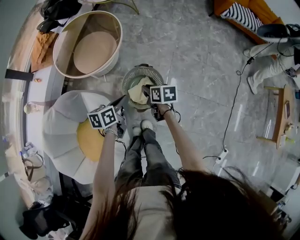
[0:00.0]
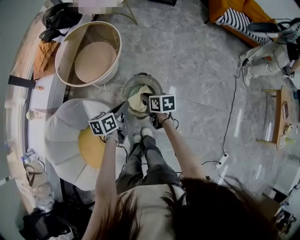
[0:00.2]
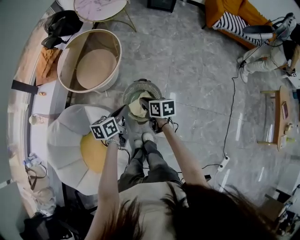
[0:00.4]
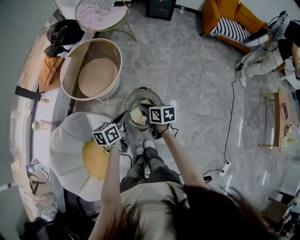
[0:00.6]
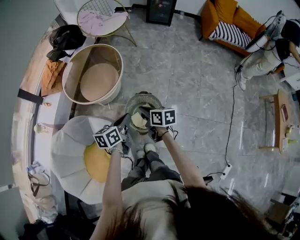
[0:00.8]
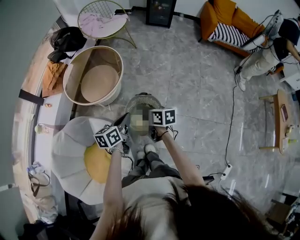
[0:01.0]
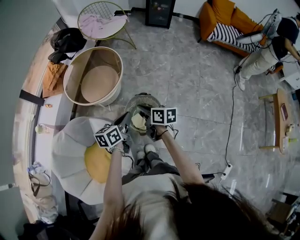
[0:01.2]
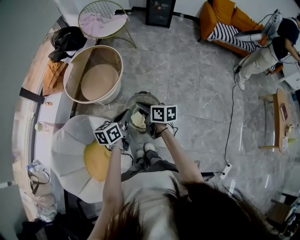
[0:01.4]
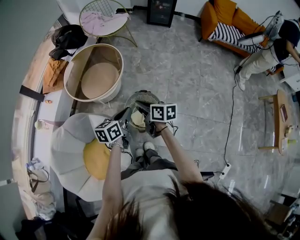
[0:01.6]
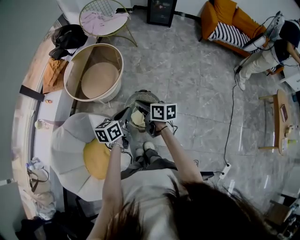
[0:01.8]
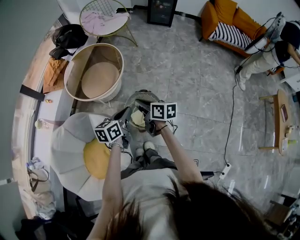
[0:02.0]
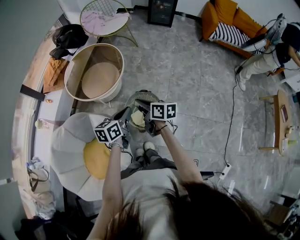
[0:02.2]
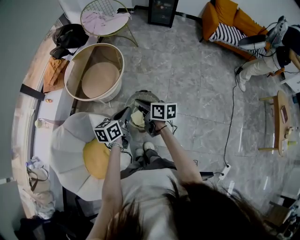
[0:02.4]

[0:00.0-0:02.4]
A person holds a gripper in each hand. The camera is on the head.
0:00.0 to 0:01.2: Both grippers travel together upward, roughly 15 cm. The right gripper changes its angle by roughly 20 degrees.
0:01.2 to 0:02.4: There are only small adjustments of the grippers.

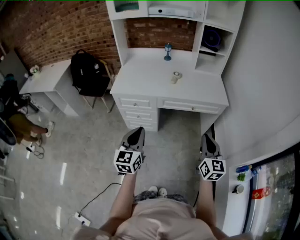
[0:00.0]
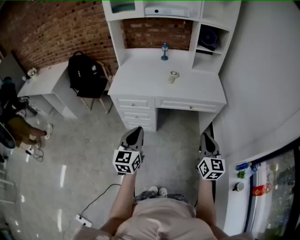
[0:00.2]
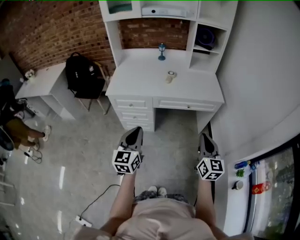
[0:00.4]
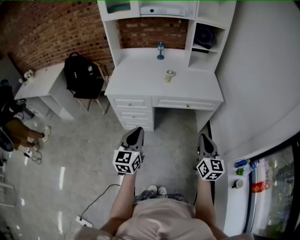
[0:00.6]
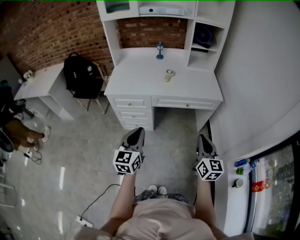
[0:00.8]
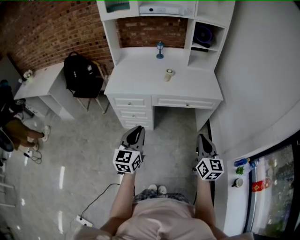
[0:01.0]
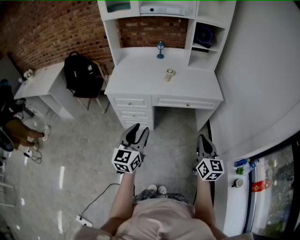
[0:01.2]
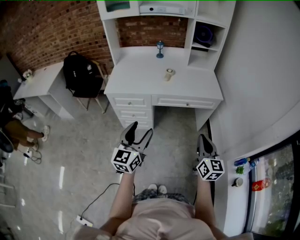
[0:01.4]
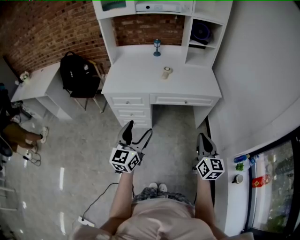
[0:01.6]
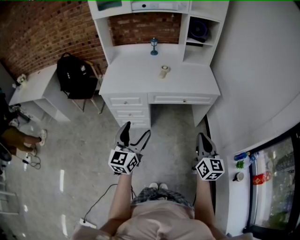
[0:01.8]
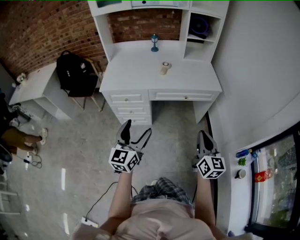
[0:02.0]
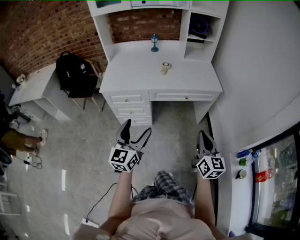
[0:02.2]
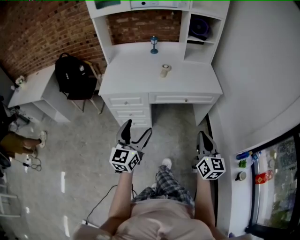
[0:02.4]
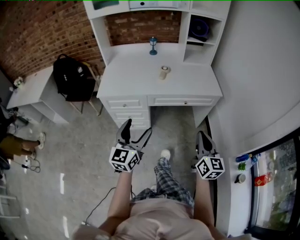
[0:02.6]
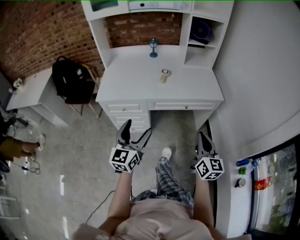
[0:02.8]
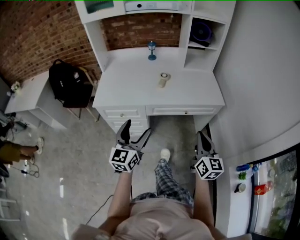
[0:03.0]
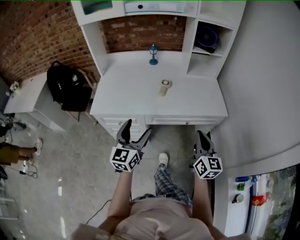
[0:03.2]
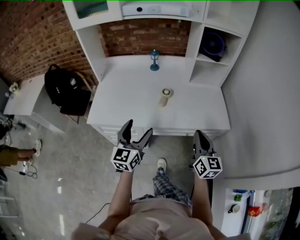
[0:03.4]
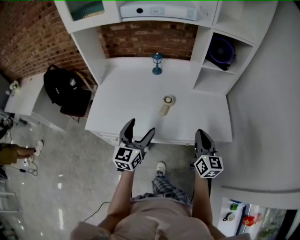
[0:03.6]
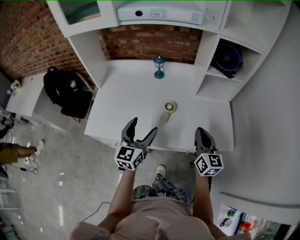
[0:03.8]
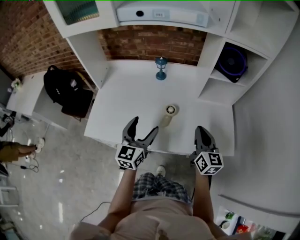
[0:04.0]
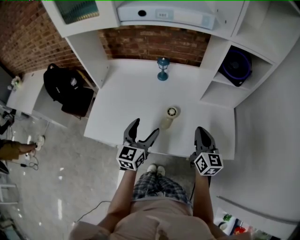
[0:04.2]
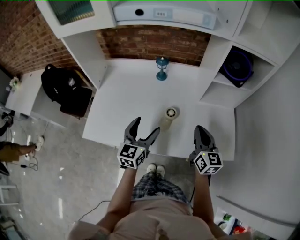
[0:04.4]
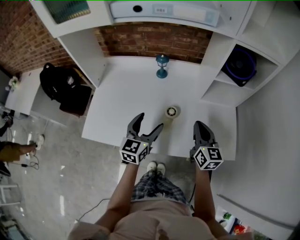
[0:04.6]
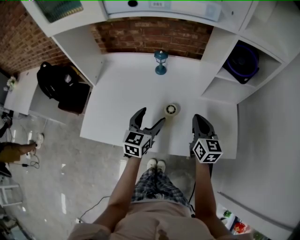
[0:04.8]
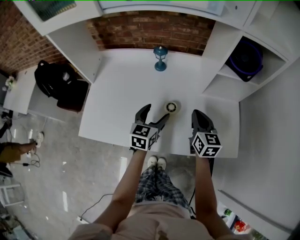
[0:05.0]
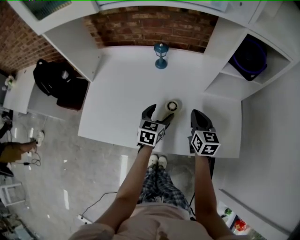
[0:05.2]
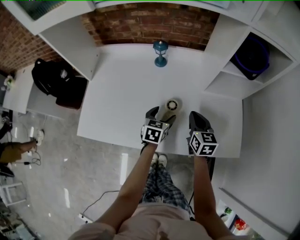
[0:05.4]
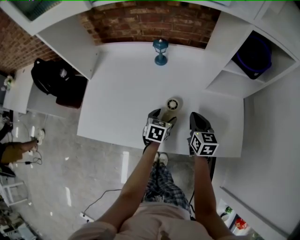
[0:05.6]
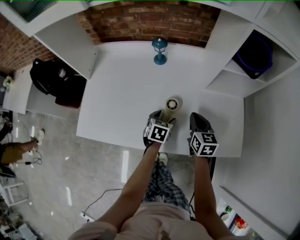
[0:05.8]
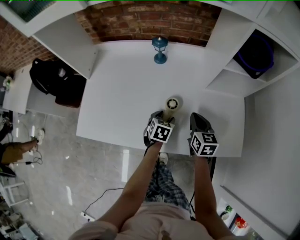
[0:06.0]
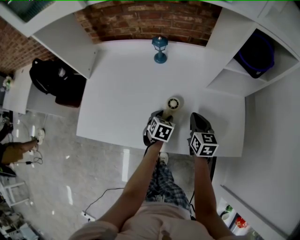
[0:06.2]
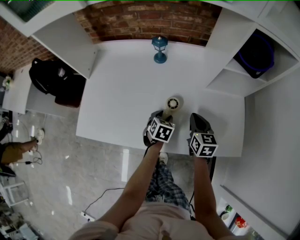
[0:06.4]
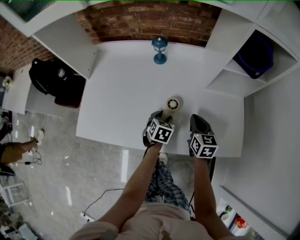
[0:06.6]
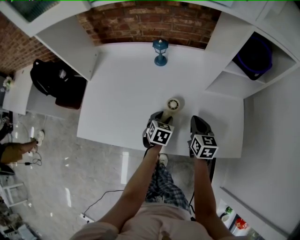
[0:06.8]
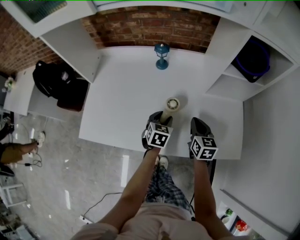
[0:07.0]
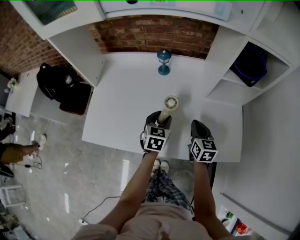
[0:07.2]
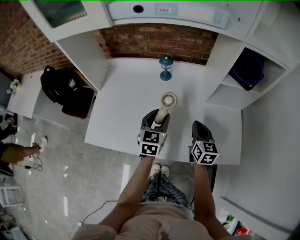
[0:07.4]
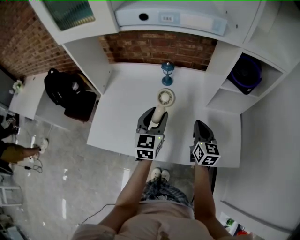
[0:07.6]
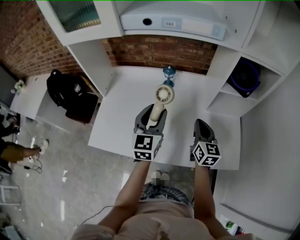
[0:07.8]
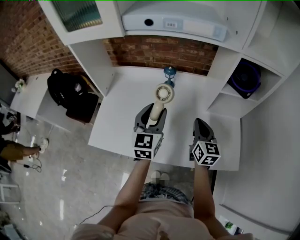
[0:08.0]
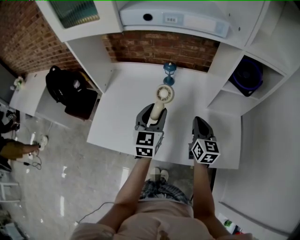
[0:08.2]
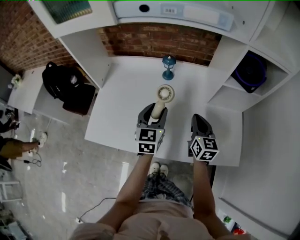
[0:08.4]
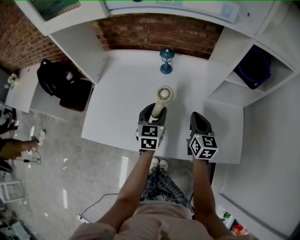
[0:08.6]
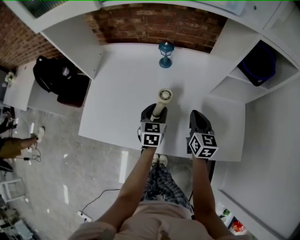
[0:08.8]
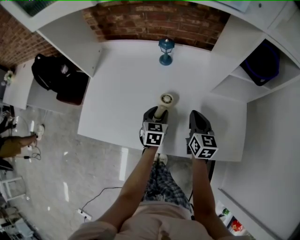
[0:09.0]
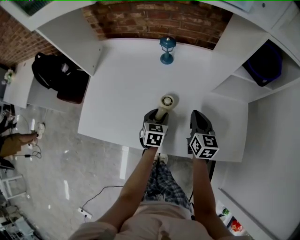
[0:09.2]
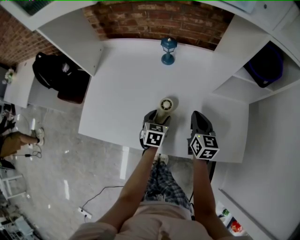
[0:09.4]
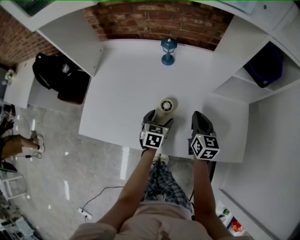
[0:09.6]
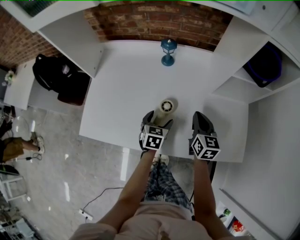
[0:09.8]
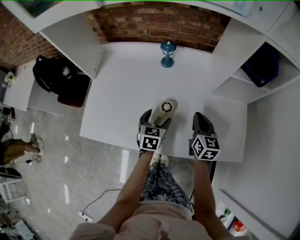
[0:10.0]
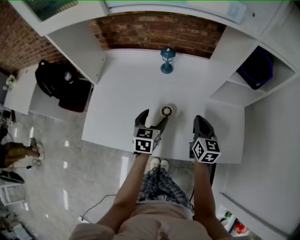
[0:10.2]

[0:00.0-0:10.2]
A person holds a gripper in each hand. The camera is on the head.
0:00.0 to 0:01.4: The left gripper opens up.
0:01.4 to 0:03.0: Both grippers travel together forward, roughly 15 cm.
0:03.0 to 0:04.4: The two grippers travel together, forward, roughly 50 cm.
0:04.4 to 0:05.8: The left gripper heads downward, forward and to the right, covering roughly 25 cm, and tips its fingers downward by some 40 degrees, while the right gripper heads downward and forward, covering roughly 15 cm.
0:05.8 to 0:07.2: The left gripper shifts some 10 cm upward, and closes up.
0:07.2 to 0:08.8: The right gripper reaches roughly 10 cm upward, then returns. The left gripper travels upward and back again, about 20 cm each way.
0:08.8 to 0:10.2: The left gripper goes downward and returns, some 10 cm each way, and opens up.

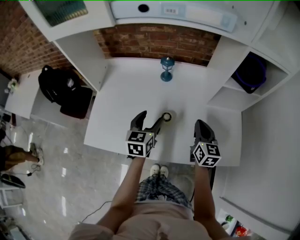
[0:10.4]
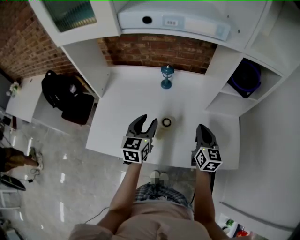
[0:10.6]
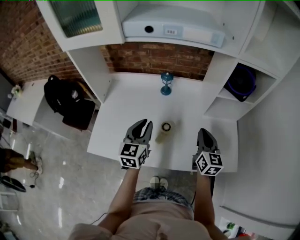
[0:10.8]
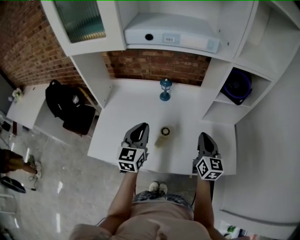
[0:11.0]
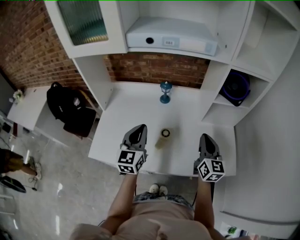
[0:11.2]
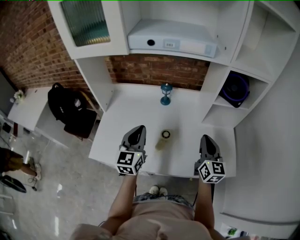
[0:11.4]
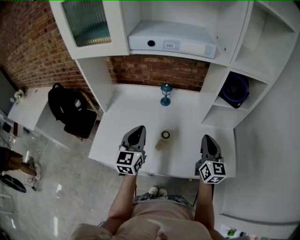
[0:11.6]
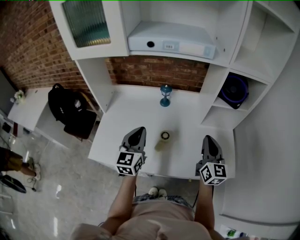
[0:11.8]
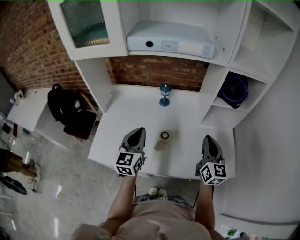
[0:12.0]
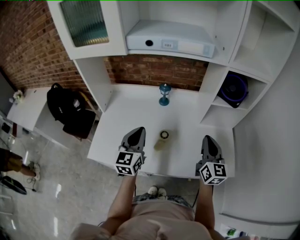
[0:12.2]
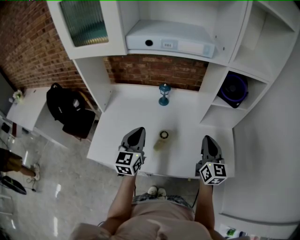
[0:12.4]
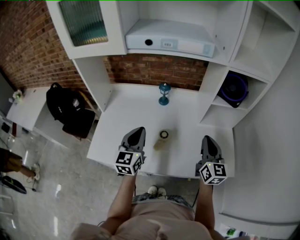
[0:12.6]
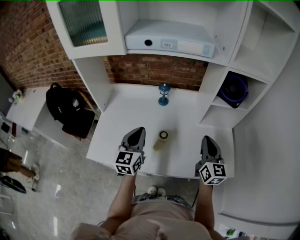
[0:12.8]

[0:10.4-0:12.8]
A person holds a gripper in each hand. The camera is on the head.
0:10.4 to 0:11.6: Both grippers travel together upward and backward, some 15 cm. The left gripper swivels roughly 20 degrees, and closes its fingers.
0:11.6 to 0:12.8: The grippers stay close to where they were, moving slightly.

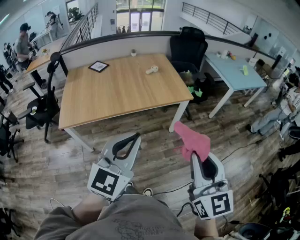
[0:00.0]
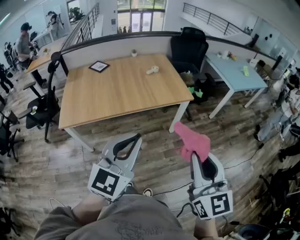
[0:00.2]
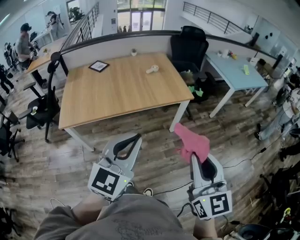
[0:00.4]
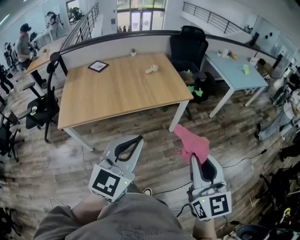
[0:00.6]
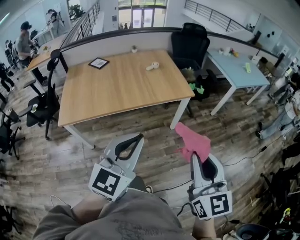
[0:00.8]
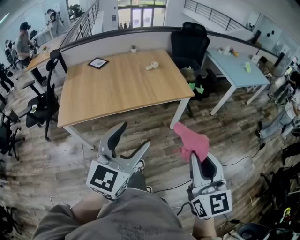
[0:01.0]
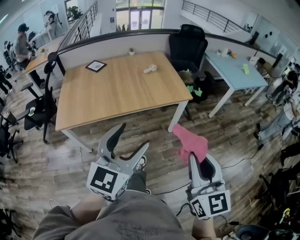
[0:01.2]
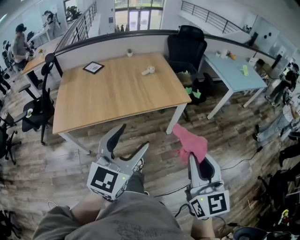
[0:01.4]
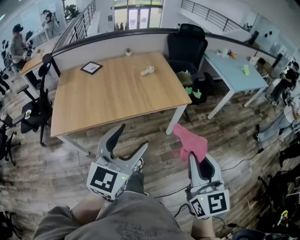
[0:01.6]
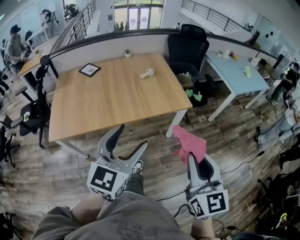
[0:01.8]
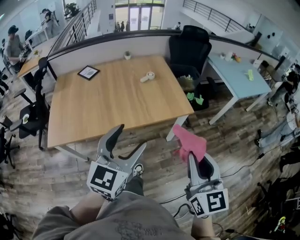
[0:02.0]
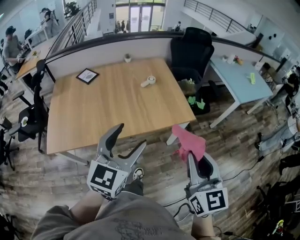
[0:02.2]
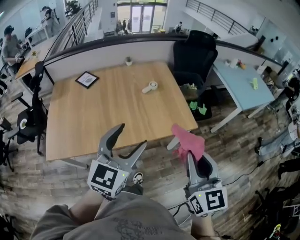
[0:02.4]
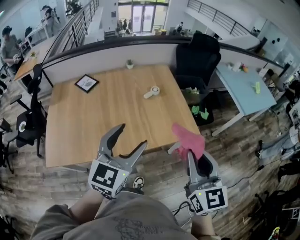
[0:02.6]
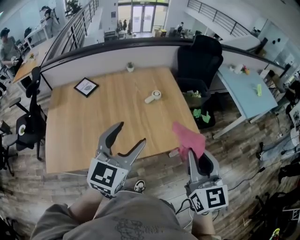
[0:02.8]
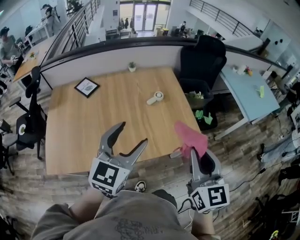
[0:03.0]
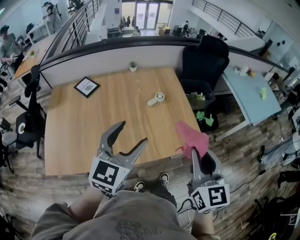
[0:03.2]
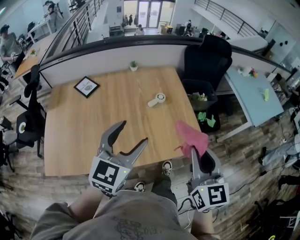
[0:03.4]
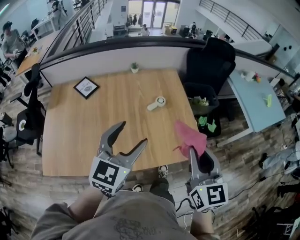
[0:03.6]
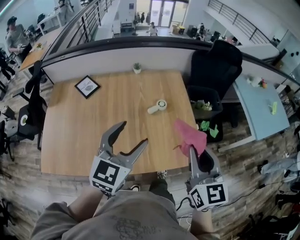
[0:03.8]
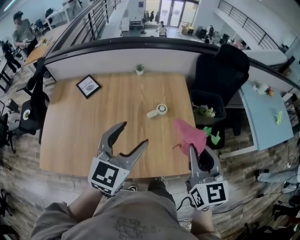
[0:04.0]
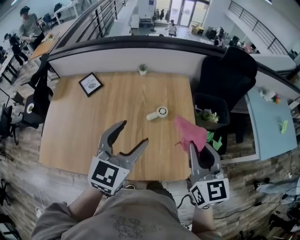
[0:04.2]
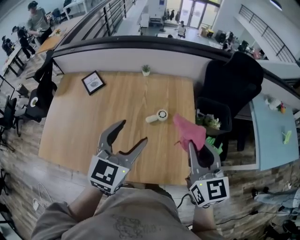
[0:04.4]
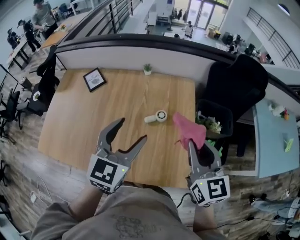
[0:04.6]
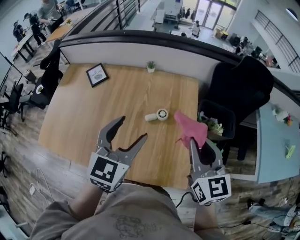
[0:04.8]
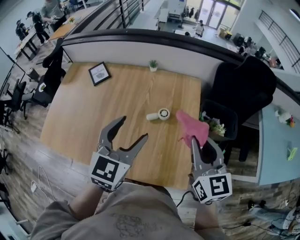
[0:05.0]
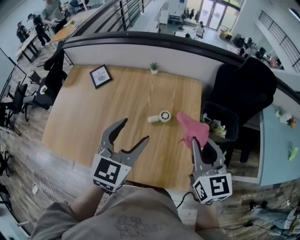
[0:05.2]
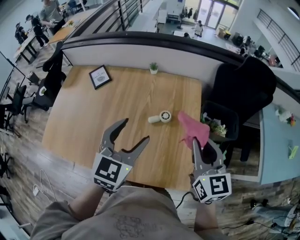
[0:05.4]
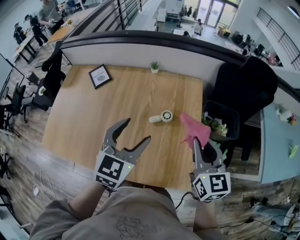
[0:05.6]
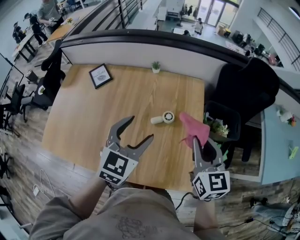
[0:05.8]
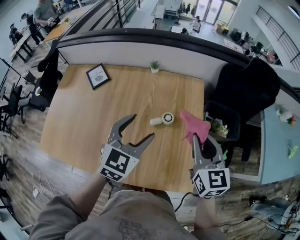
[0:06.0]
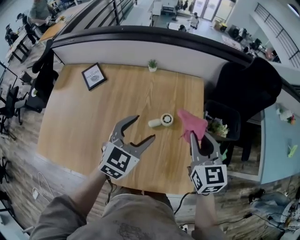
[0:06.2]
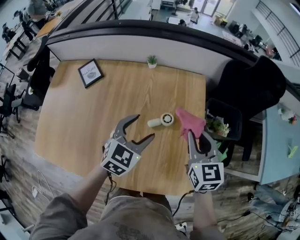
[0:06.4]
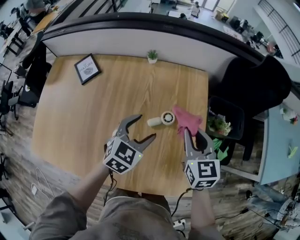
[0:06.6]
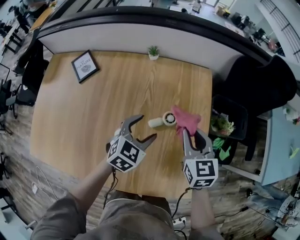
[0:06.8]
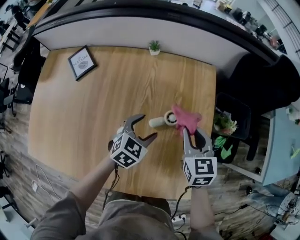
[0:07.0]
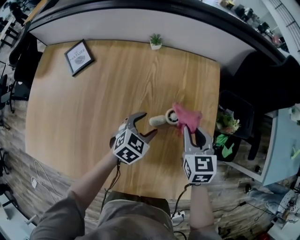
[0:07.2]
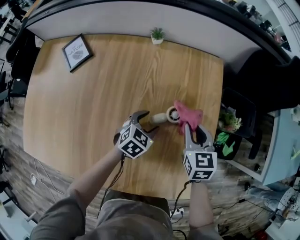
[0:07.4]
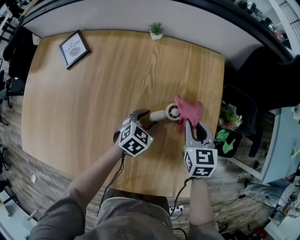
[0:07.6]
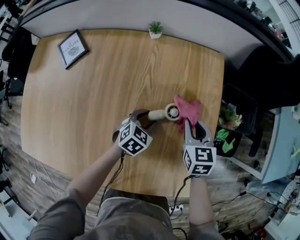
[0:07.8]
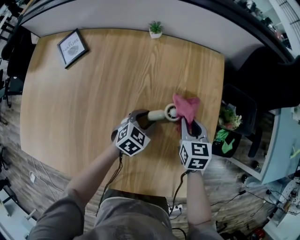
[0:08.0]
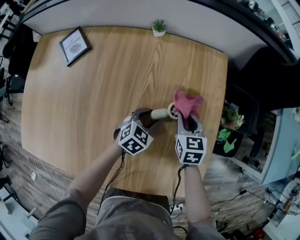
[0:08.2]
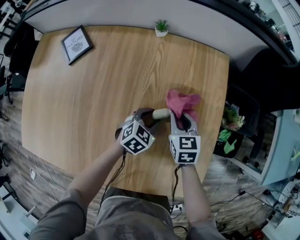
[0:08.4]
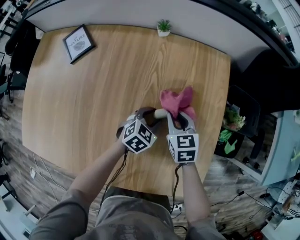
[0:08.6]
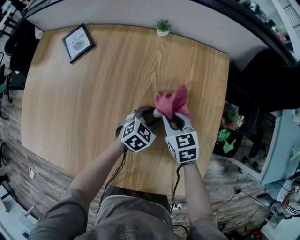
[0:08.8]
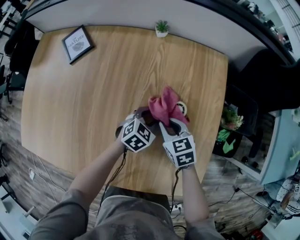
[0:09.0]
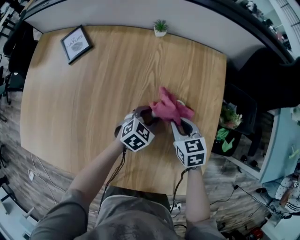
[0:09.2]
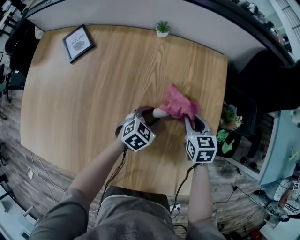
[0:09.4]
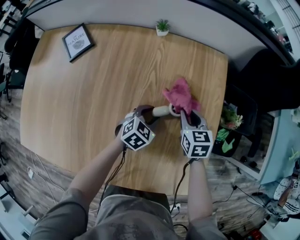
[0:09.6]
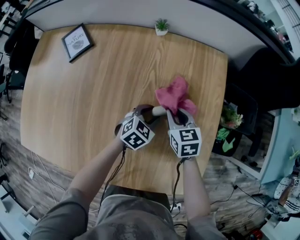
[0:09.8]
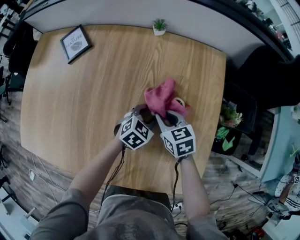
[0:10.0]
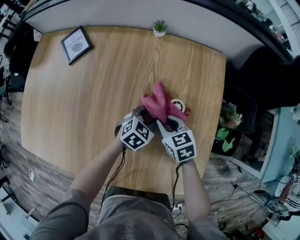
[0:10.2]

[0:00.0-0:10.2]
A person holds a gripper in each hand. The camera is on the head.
0:00.0 to 0:01.4: The grippers both shift forward by approximately 5 cm. The left gripper opens.
0:01.4 to 0:03.0: The two grippers travel together, forward, about 40 cm.
0:03.0 to 0:04.4: The right gripper moves forward, roughly 30 cm, and swivels some 20 degrees; the left gripper is displaced forward and to the right by roughly 25 cm.
0:04.4 to 0:05.8: The grippers both shift forward by about 5 cm.
0:05.8 to 0:07.2: The two grippers go approximately 30 cm downward and forward. The right gripper changes its angle by roughly 20 degrees. Meanwhile the left gripper changes its angle by roughly 30 degrees.
0:07.2 to 0:08.8: The right gripper goes roughly 15 cm downward and to the left; the left gripper travels downward by some 5 cm, and closes up.
0:08.8 to 0:10.2: The right gripper moves approximately 10 cm to the right and comes back.
